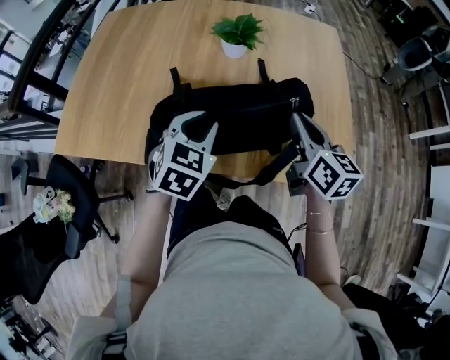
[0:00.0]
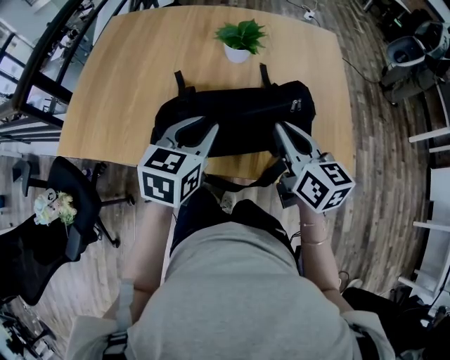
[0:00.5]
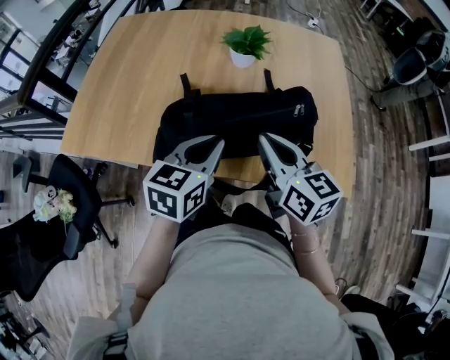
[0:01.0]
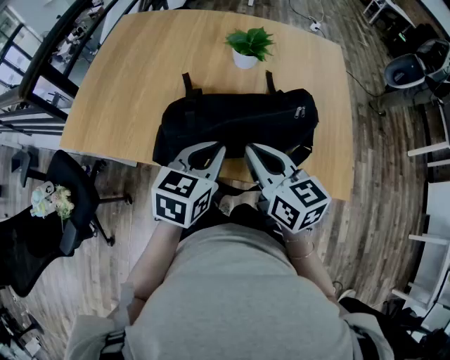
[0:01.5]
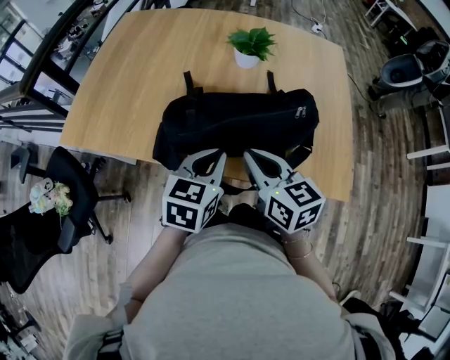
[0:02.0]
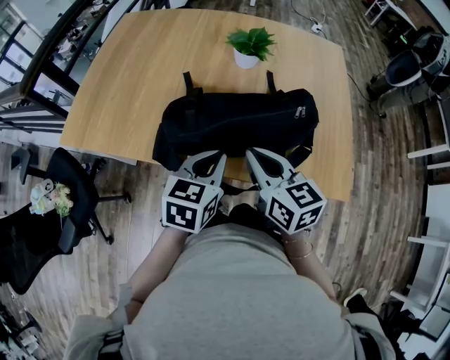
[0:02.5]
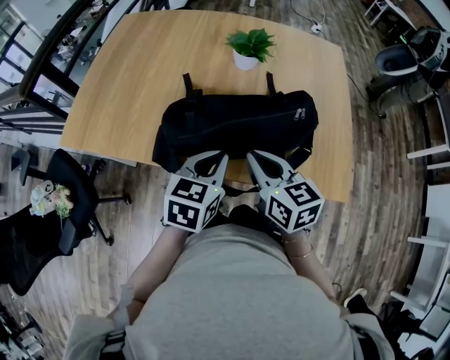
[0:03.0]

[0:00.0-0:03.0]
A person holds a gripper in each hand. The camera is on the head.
0:00.0 to 0:01.5: The right gripper shifts roughly 15 cm to the left and backward, and turns by roughly 20 degrees, while the left gripper is displaced backward by about 5 cm, and changes its angle by roughly 30 degrees.
0:01.5 to 0:03.0: There are only small adjustments of the grippers.
